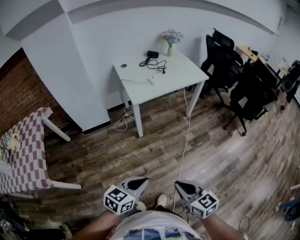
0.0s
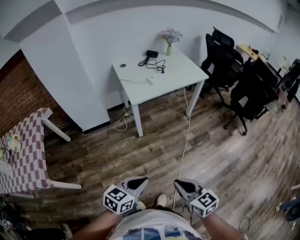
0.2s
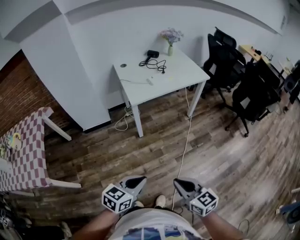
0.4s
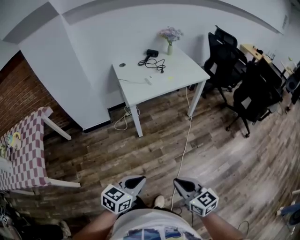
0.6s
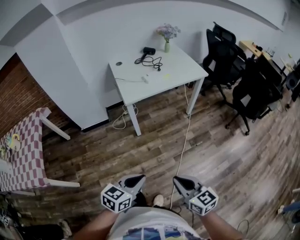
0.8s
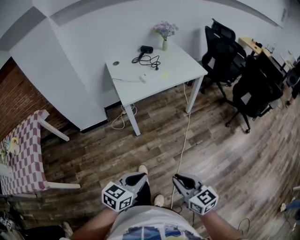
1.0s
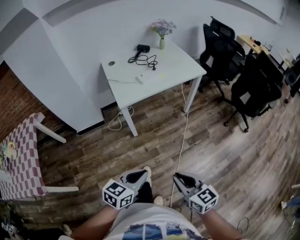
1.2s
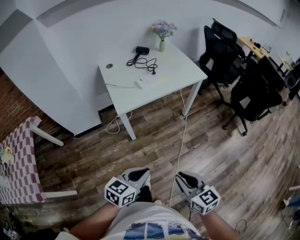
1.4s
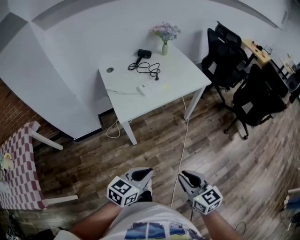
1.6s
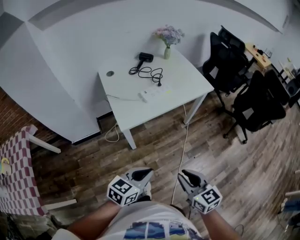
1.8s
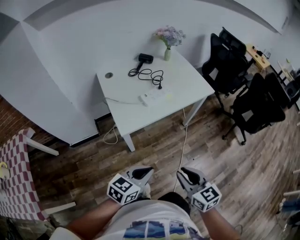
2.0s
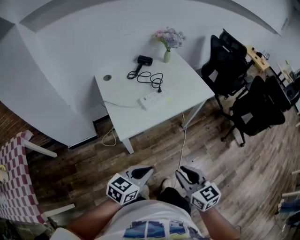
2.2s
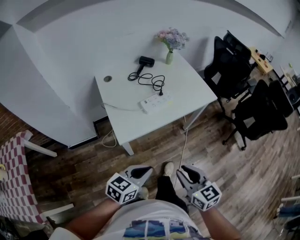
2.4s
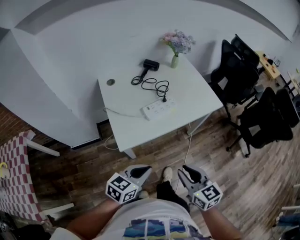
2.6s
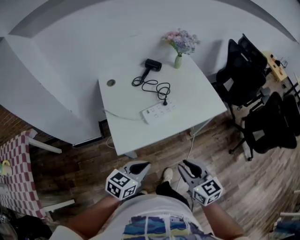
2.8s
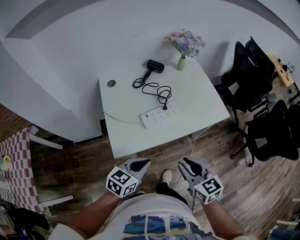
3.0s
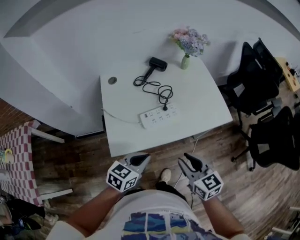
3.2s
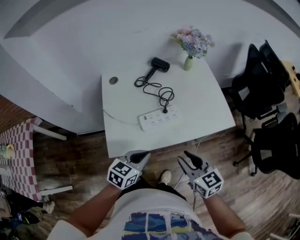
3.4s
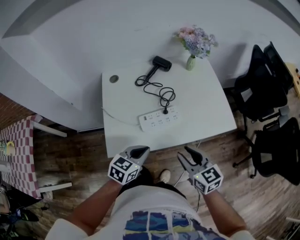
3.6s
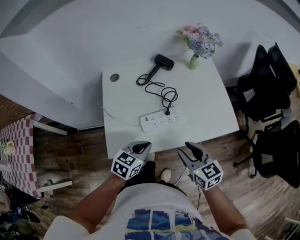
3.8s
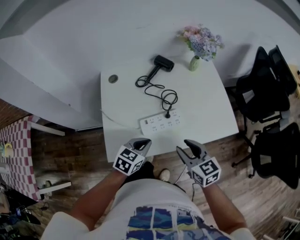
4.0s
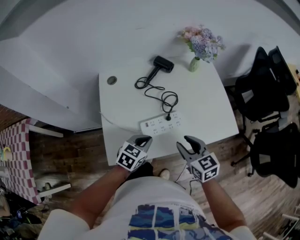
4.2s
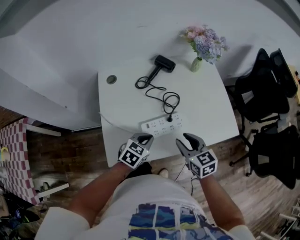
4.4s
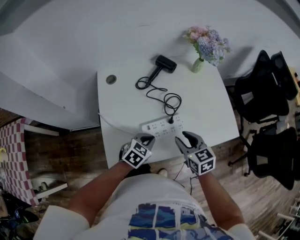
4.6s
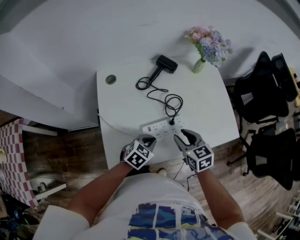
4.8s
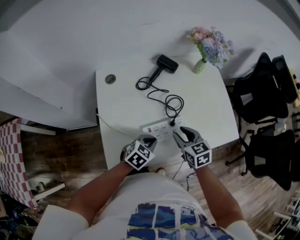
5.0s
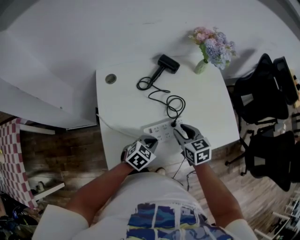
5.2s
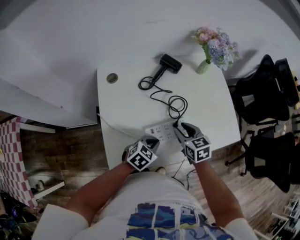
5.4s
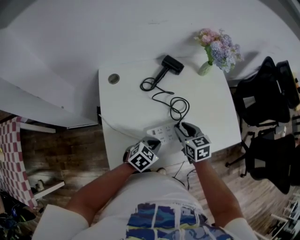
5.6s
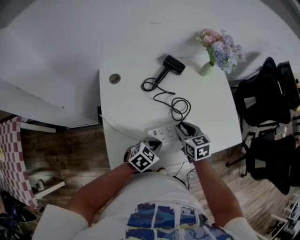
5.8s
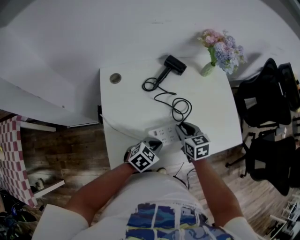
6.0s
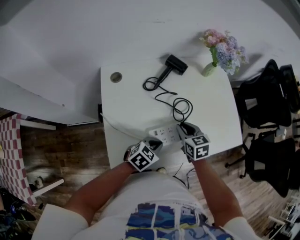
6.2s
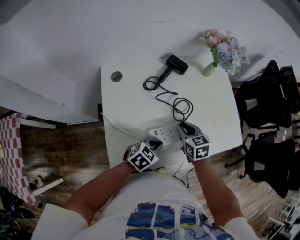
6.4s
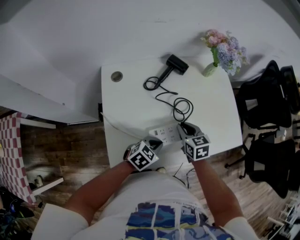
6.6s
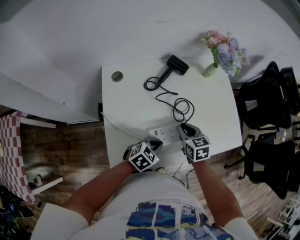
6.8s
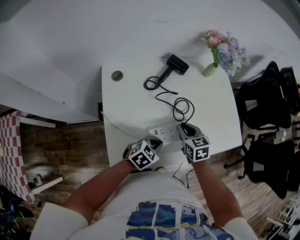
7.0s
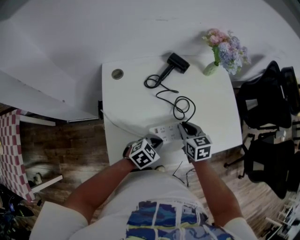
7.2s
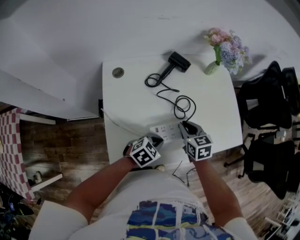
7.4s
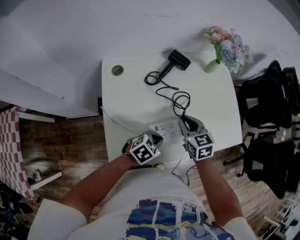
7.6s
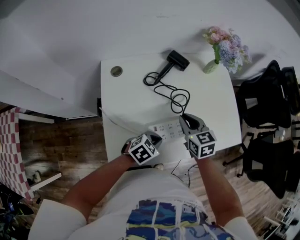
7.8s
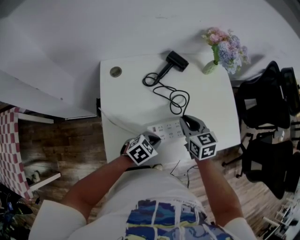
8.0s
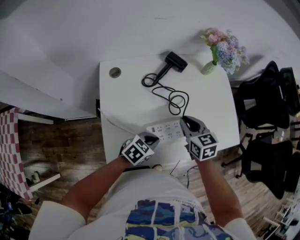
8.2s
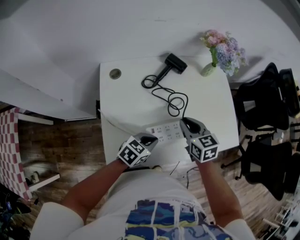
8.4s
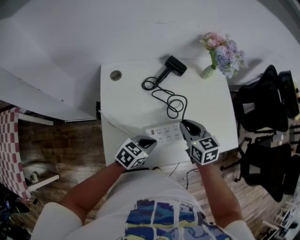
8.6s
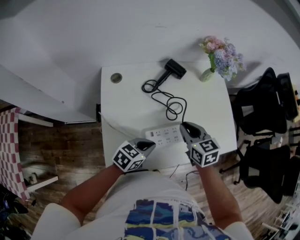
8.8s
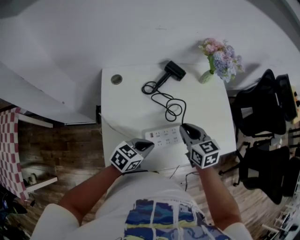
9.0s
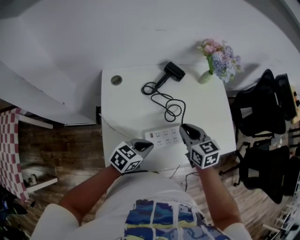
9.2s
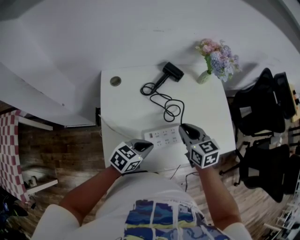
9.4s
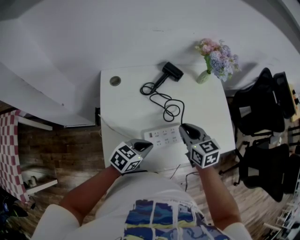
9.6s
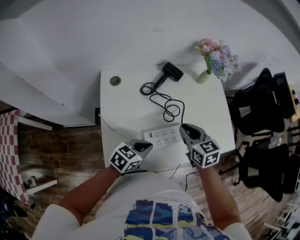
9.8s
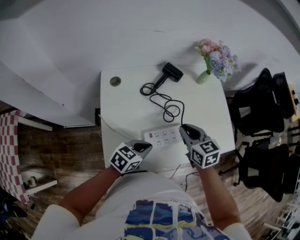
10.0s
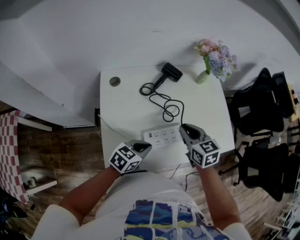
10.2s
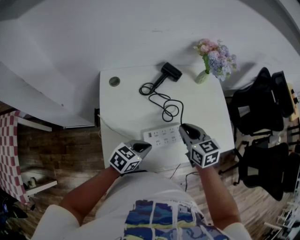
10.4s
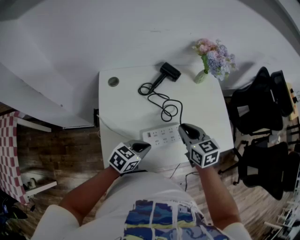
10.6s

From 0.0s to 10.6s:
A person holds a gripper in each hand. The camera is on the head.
From 0.0s to 1.6s: Both grippers travel together forward, about 25 cm.
From 1.6s to 3.0s: Both grippers travel together forward, some 35 cm.
From 3.0s to 4.6s: Both grippers travel together forward and downward, about 25 cm.
From 4.6s to 6.0s: The right gripper heads forward, downward and to the left, covering approximately 10 cm.
From 6.0s to 7.6s: There are only small adjustments of the grippers.
From 7.6s to 9.0s: The left gripper goes some 5 cm upward, and rotates roughly 20 degrees. Meanwhile the right gripper ends up some 5 cm from where it was.
From 9.0s to 10.6s: The grippers move only a little.

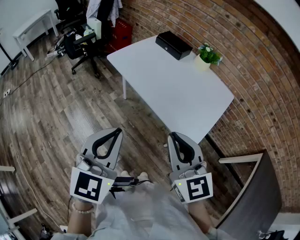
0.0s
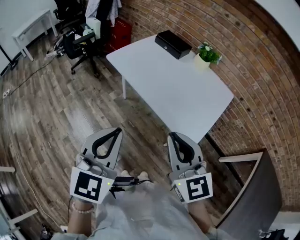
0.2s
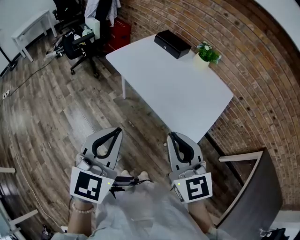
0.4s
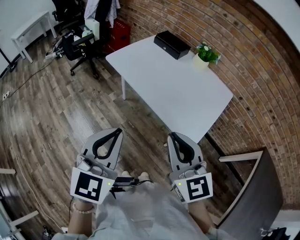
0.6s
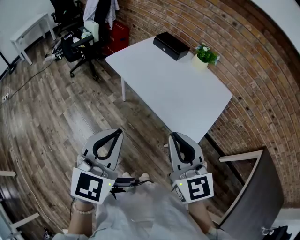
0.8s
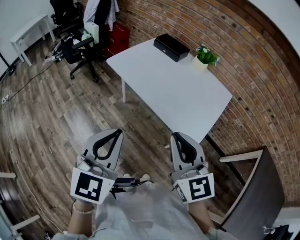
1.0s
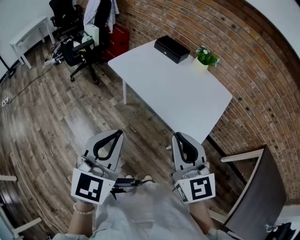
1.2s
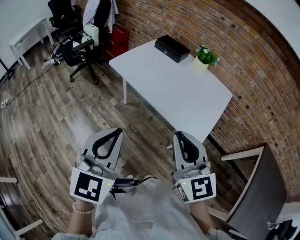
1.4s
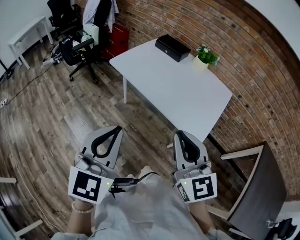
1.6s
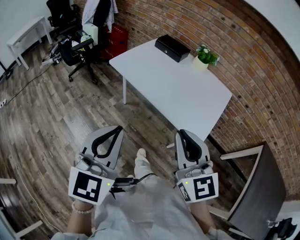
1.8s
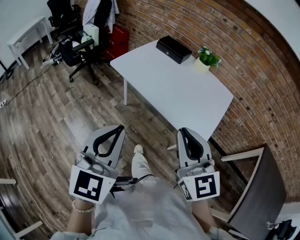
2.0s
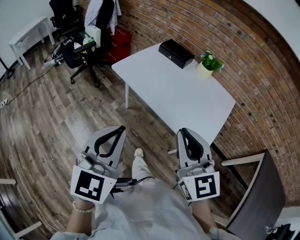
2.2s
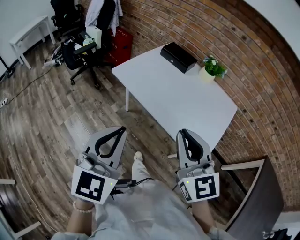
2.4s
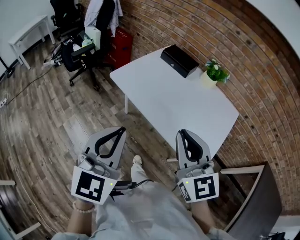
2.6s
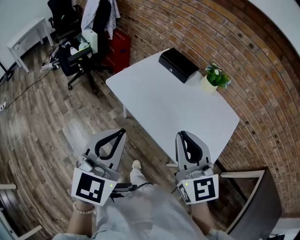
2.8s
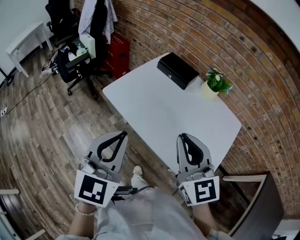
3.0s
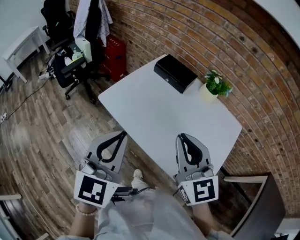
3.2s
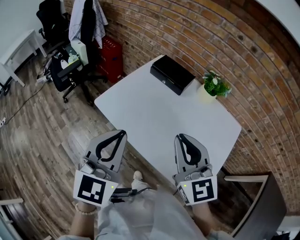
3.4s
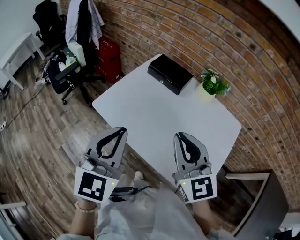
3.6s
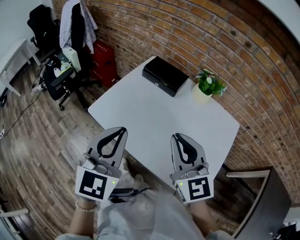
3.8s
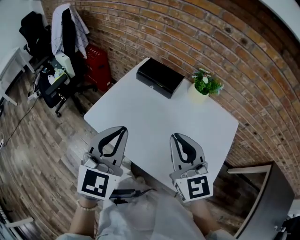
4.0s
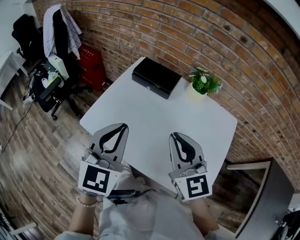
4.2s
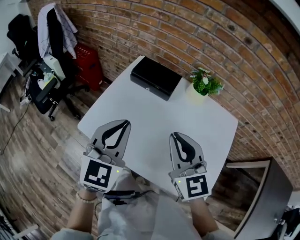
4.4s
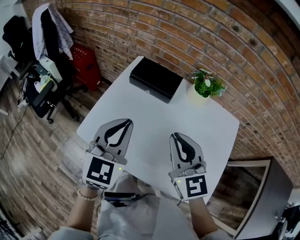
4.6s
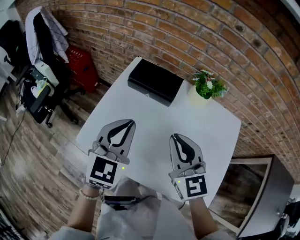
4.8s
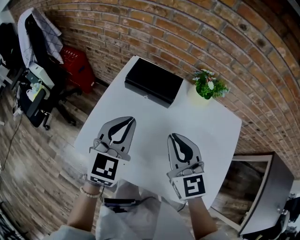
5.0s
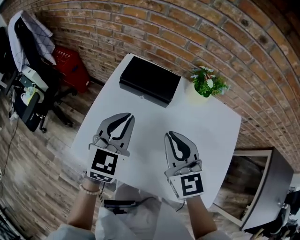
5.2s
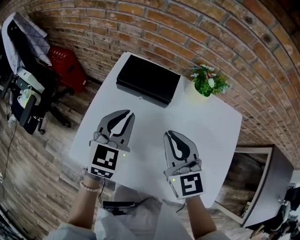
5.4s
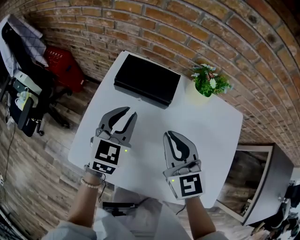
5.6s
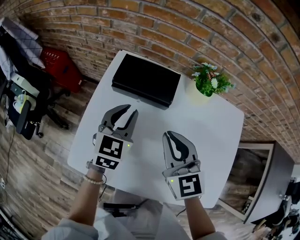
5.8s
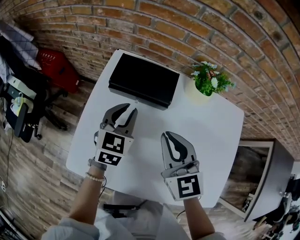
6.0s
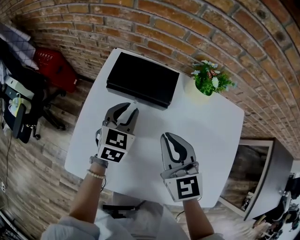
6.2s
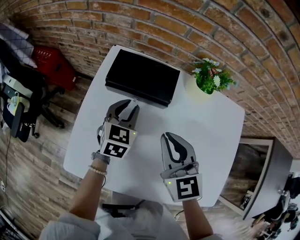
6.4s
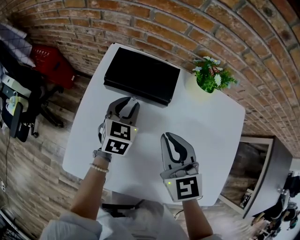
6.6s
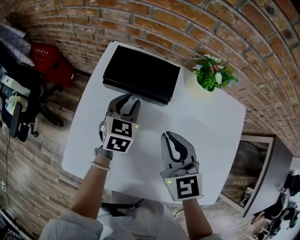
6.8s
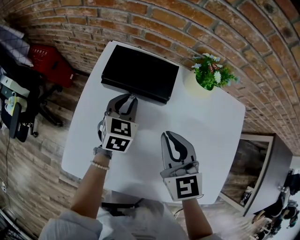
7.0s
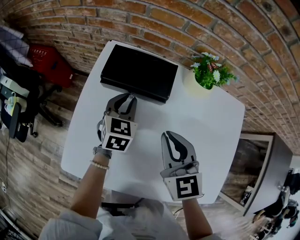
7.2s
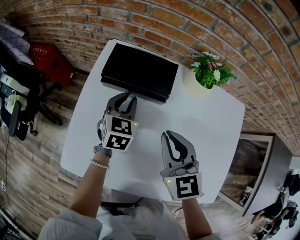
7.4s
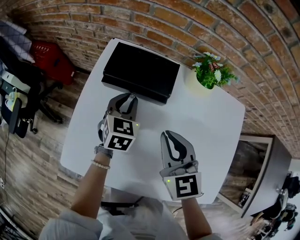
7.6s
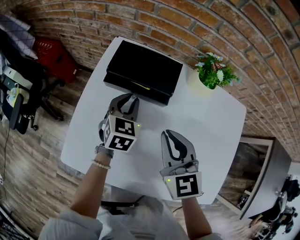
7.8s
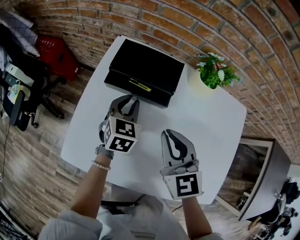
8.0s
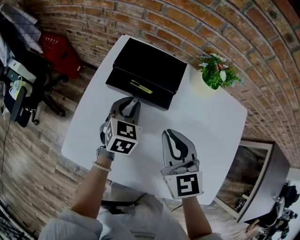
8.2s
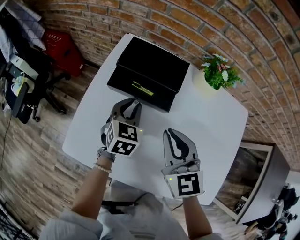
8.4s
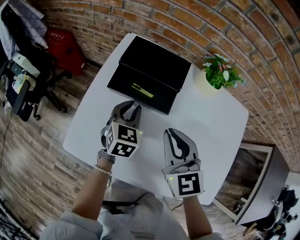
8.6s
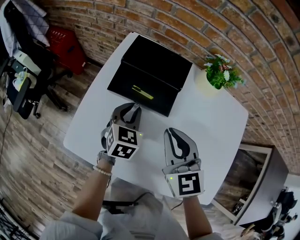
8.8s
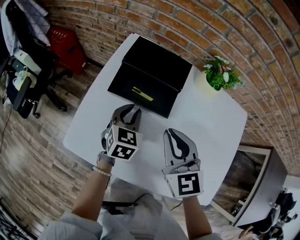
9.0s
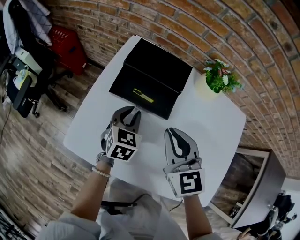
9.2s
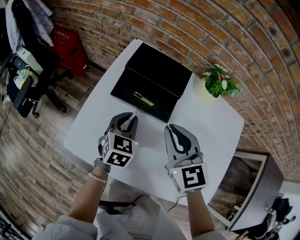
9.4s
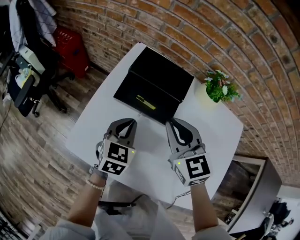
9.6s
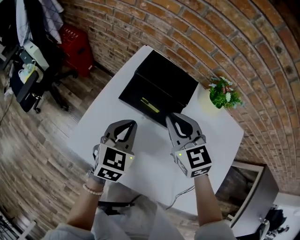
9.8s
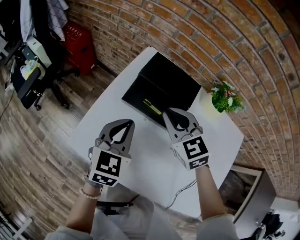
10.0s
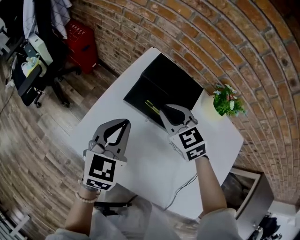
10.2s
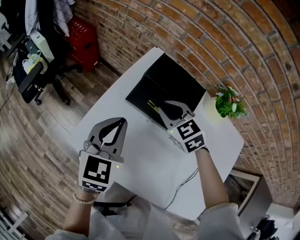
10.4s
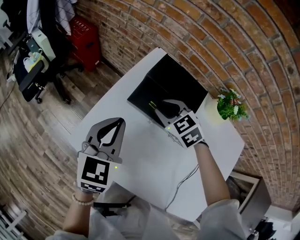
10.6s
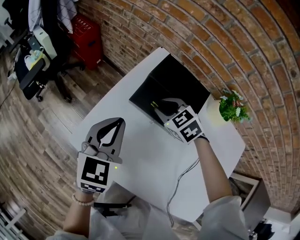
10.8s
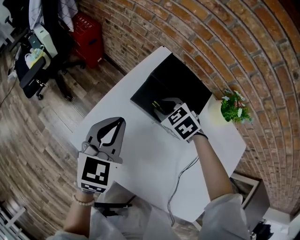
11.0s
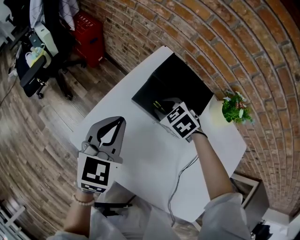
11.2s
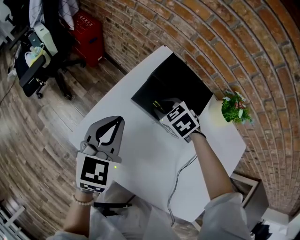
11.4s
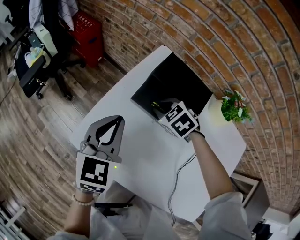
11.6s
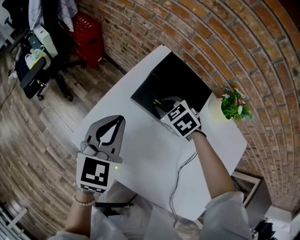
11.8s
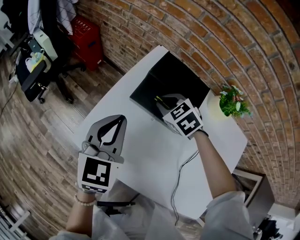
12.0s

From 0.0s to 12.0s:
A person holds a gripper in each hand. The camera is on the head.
From 0.0s to 1.6s: The left gripper heads to the left, covering roughly 5 cm, while the right gripper ends up about 5 cm from where it was.
From 1.6s to 3.0s: The two grippers go approximately 25 cm forward.
From 3.0s to 4.4s: Both grippers travel together forward, approximately 20 cm.
From 4.4s to 6.0s: The left gripper moves forward and downward, some 30 cm, and turns by about 20 degrees, while the right gripper heads forward and downward, covering about 20 cm.
From 6.0s to 7.6s: The left gripper shifts roughly 5 cm downward.
From 7.6s to 9.0s: The left gripper goes approximately 10 cm backward.
From 9.0s to 10.4s: The right gripper goes roughly 15 cm forward, to the left and downward, and changes its angle by approximately 40 degrees. Meanwhile the left gripper is displaced upward and to the left by about 15 cm.

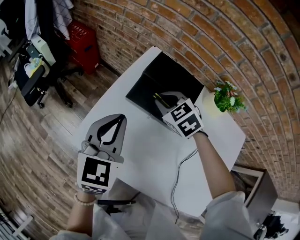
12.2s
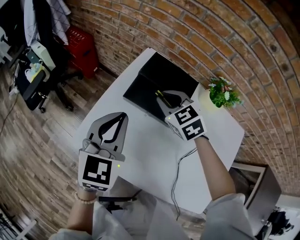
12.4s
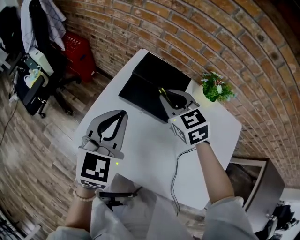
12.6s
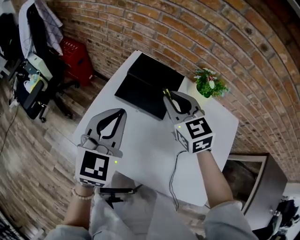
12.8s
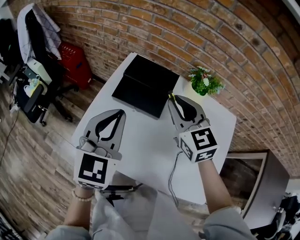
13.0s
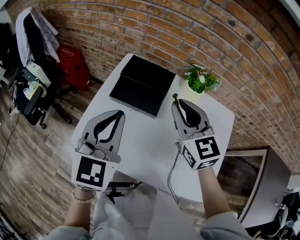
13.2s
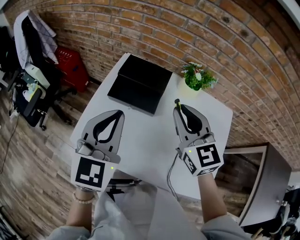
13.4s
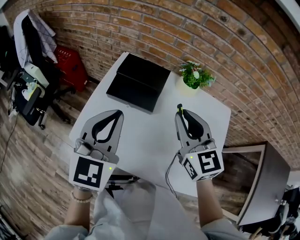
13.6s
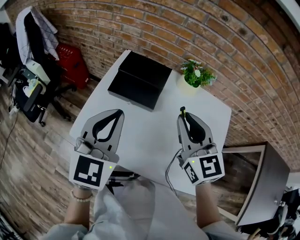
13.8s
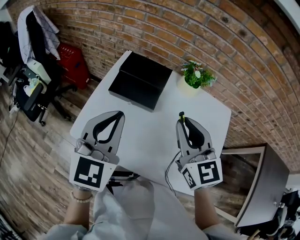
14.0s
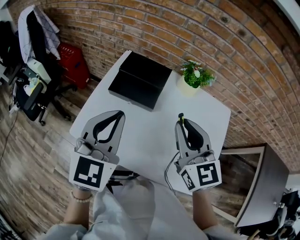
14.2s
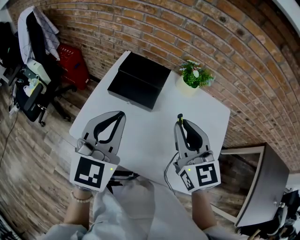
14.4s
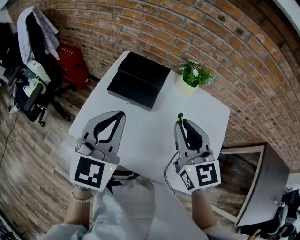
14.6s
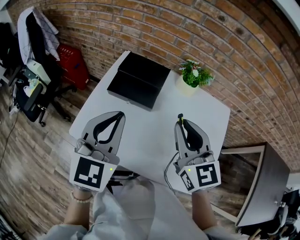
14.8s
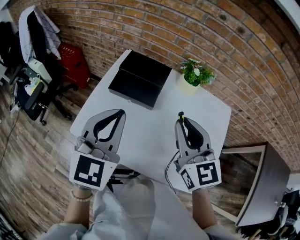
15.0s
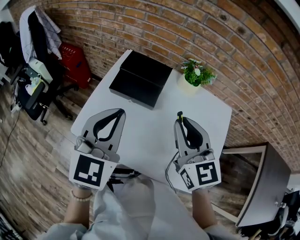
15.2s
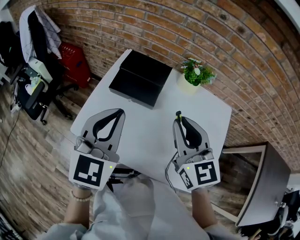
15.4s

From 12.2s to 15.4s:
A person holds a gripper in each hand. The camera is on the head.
From 12.2s to 13.8s: The right gripper travels backward, upward and to the right by approximately 35 cm, and tilts its fingers approximately 40 degrees upward. The left gripper goes roughly 20 cm upward, backward and to the right.
From 13.8s to 15.4s: The grippers stay close to where they were, moving slightly.
